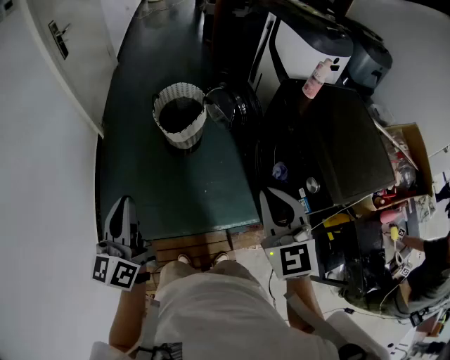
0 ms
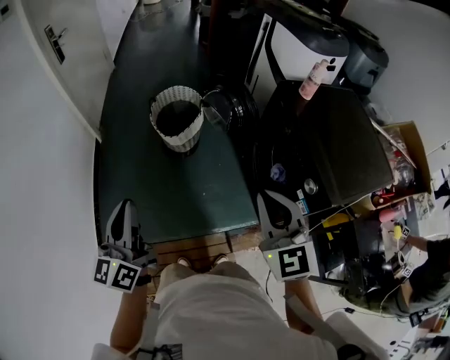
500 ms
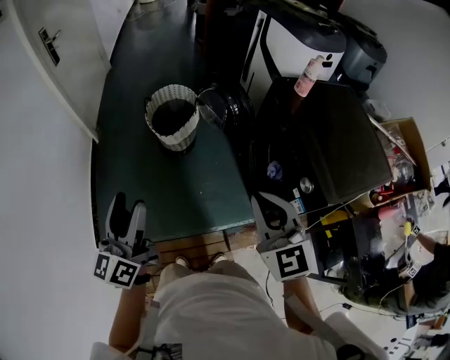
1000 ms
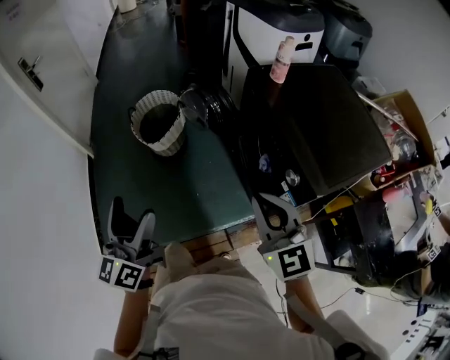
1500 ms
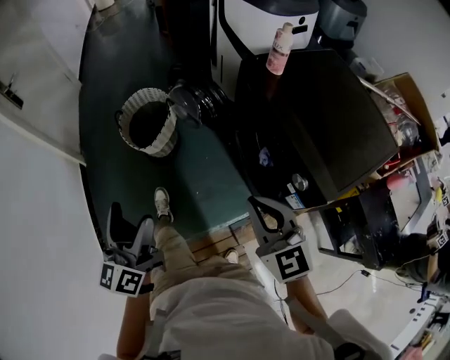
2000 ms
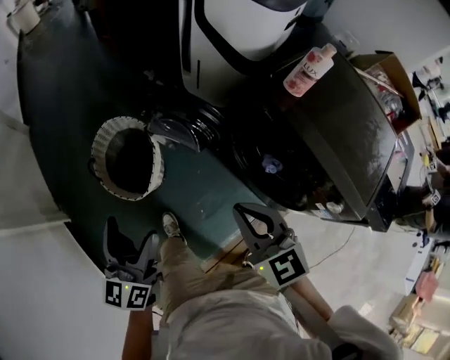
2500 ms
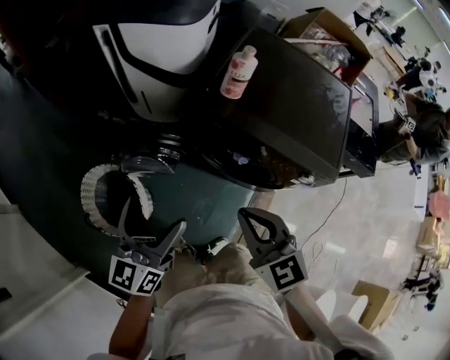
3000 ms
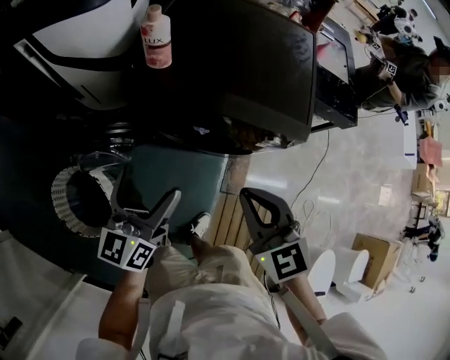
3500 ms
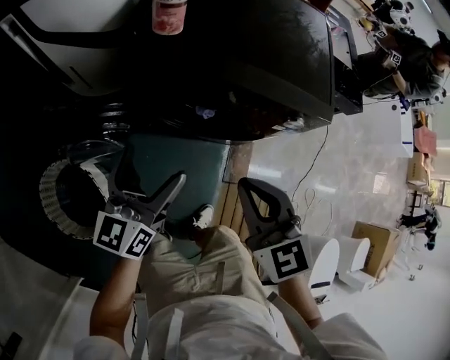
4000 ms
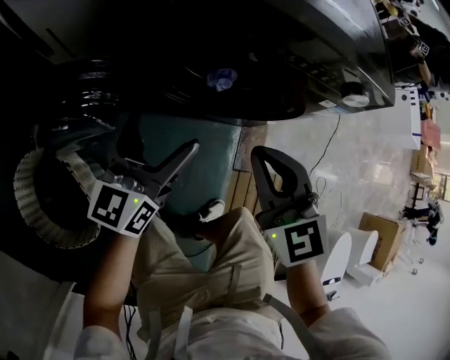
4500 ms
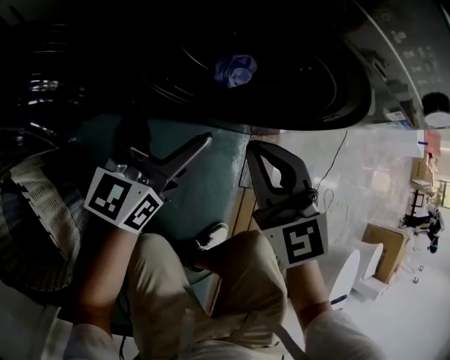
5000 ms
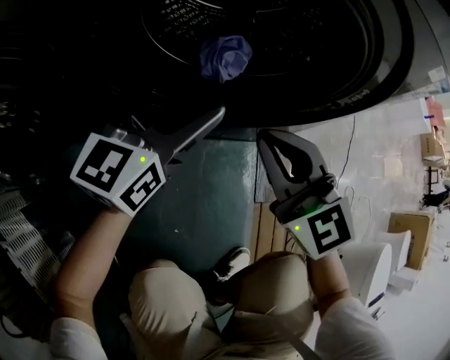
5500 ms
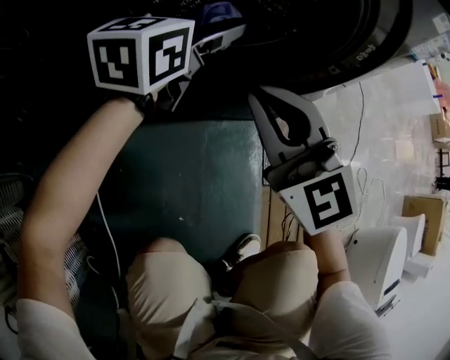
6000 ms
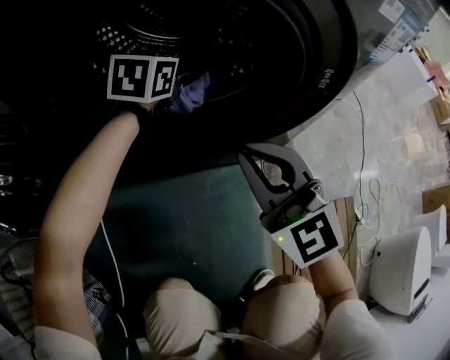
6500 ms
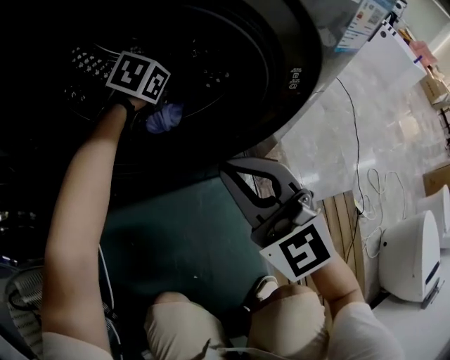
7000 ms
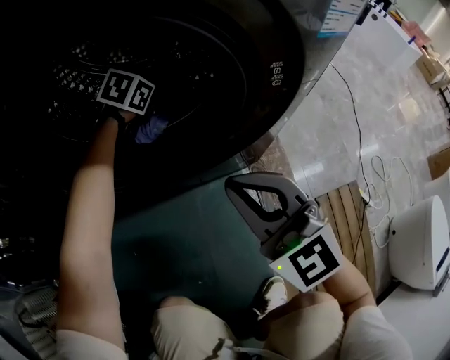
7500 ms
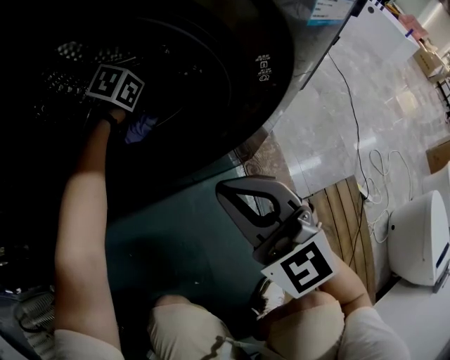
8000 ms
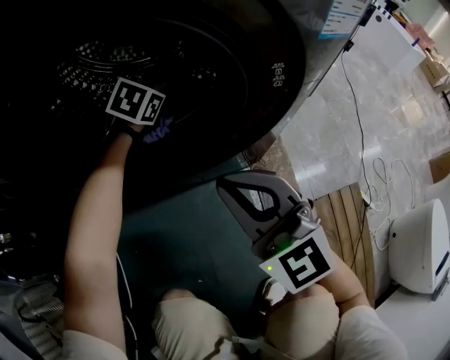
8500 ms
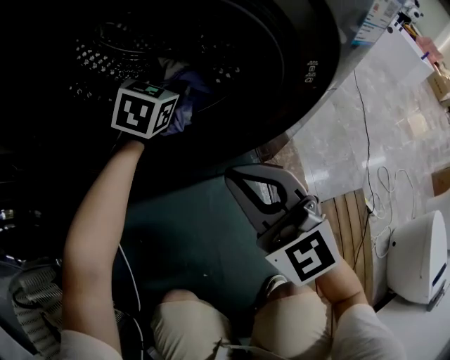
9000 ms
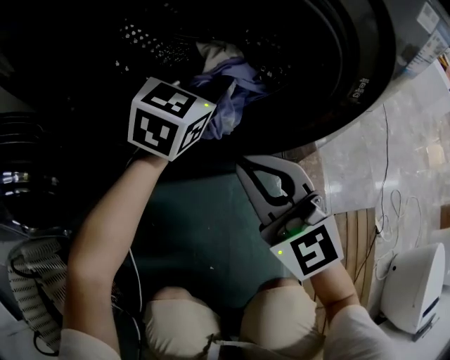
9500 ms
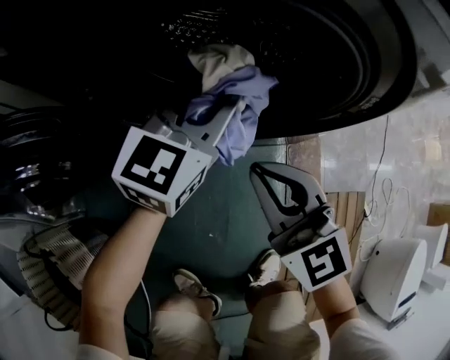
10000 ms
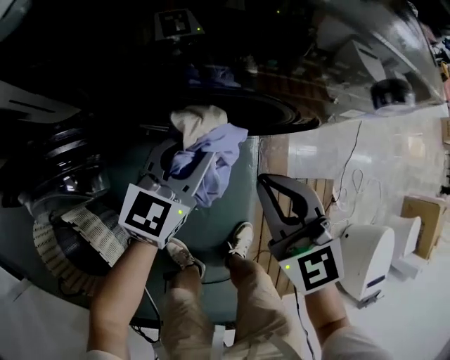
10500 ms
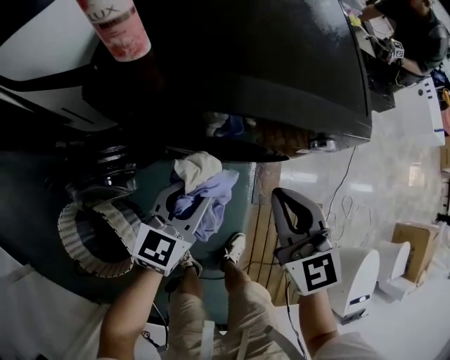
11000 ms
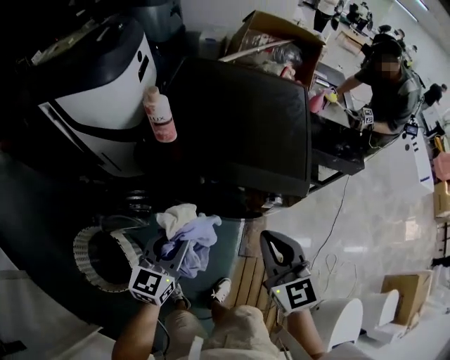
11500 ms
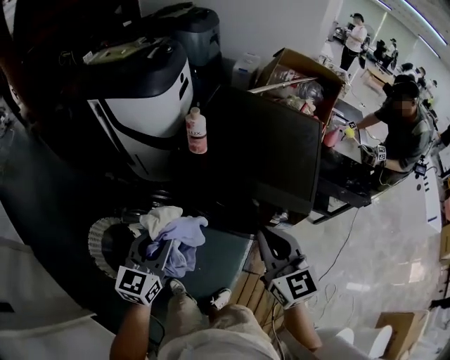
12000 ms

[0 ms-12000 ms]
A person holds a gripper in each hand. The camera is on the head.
0 ms to 2000 ms: The left gripper shifts roughly 20 cm to the right and forward, and opens its fingers, while the right gripper shifts about 15 cm to the right, downward and forward.
2000 ms to 4000 ms: The right gripper moves up and down over approximately 10 cm, changing direction 2 times, and swivels some 60 degrees; the left gripper swings up and down, roughly 15 cm each way, with 2 reversals, and swivels approximately 70 degrees.
4000 ms to 6000 ms: The left gripper travels downward and forward by about 50 cm, and rotates about 30 degrees. The right gripper moves downward, some 50 cm, and changes its angle by some 20 degrees.
6000 ms to 8000 ms: The right gripper shifts approximately 10 cm to the right, while the left gripper goes some 25 cm downward and forward, and angles its fingers downward, by roughly 50 degrees.
8000 ms to 10000 ms: The right gripper moves to the left and upward, roughly 10 cm; the left gripper goes approximately 30 cm upward and backward, tips its fingers upward by about 50 degrees, and closes.
10000 ms to 12000 ms: The left gripper heads upward and backward, covering roughly 60 cm, and changes its angle by about 40 degrees; the right gripper shifts about 60 cm upward.

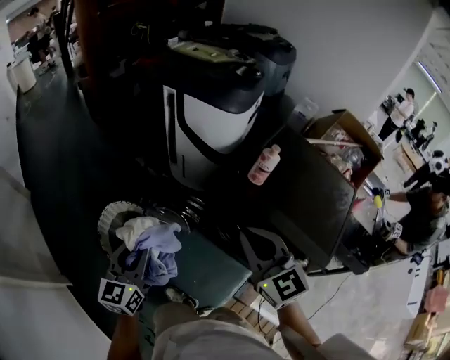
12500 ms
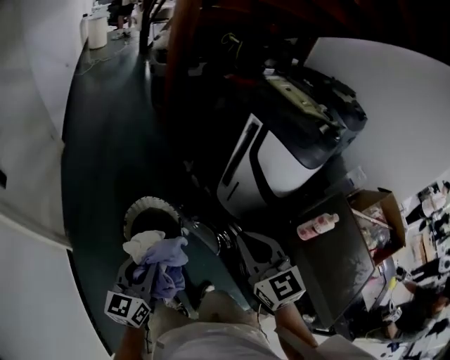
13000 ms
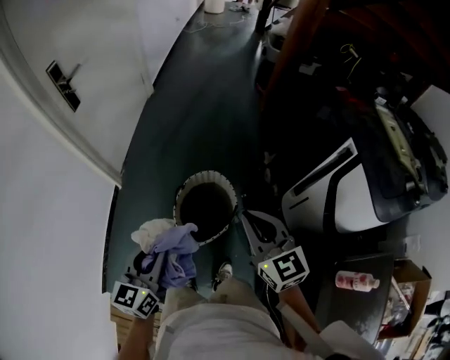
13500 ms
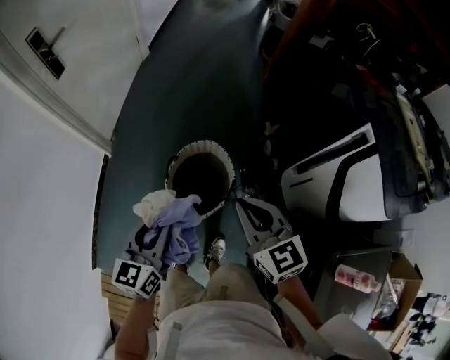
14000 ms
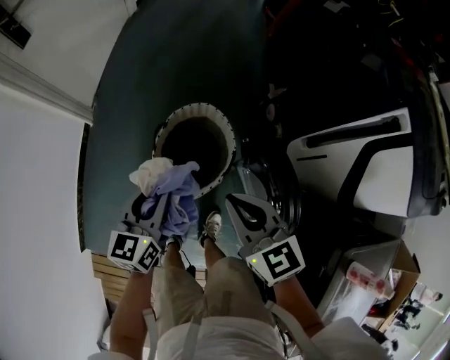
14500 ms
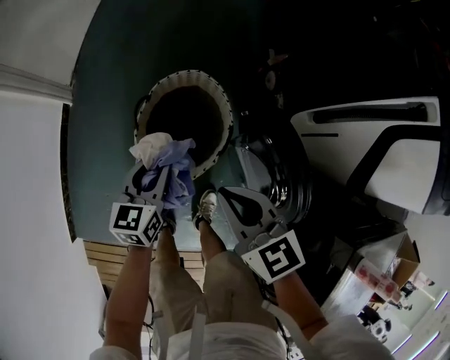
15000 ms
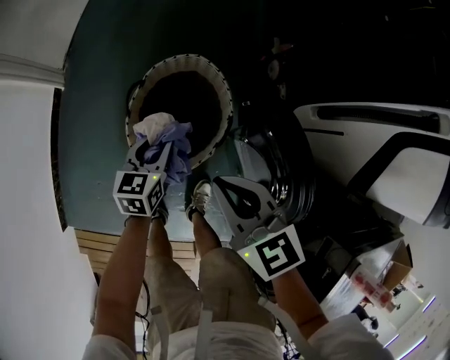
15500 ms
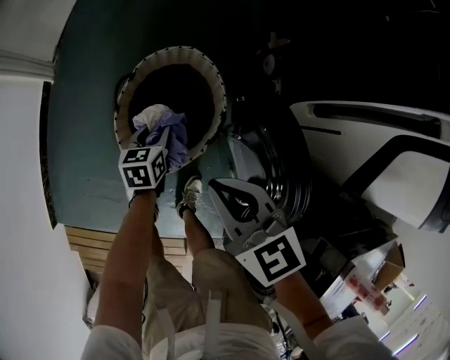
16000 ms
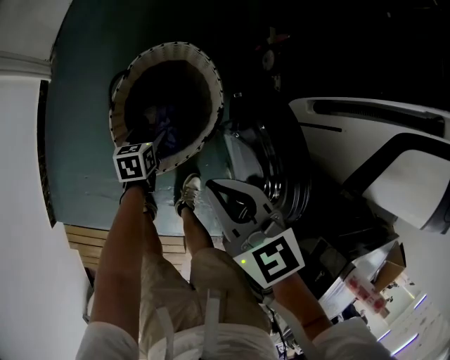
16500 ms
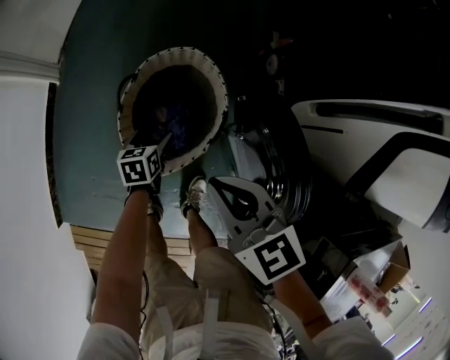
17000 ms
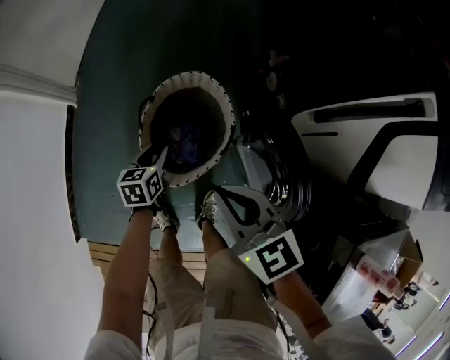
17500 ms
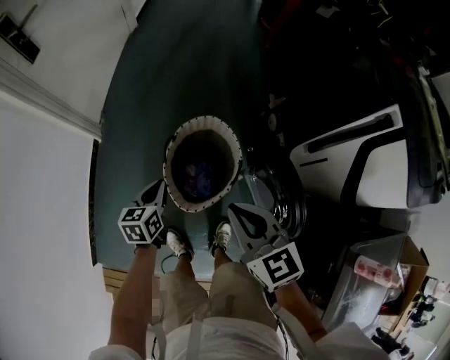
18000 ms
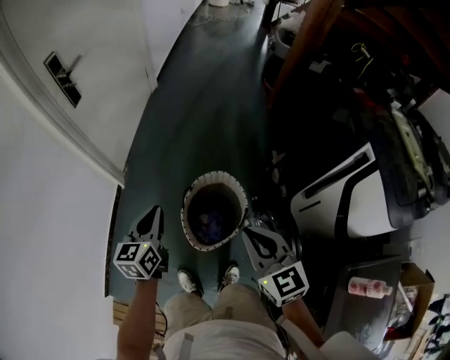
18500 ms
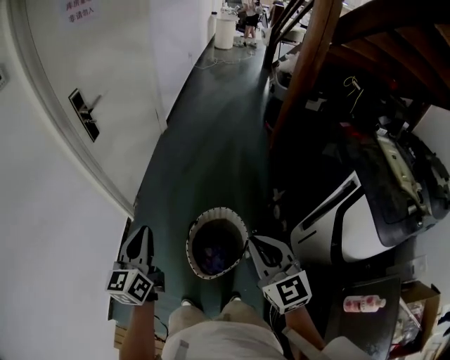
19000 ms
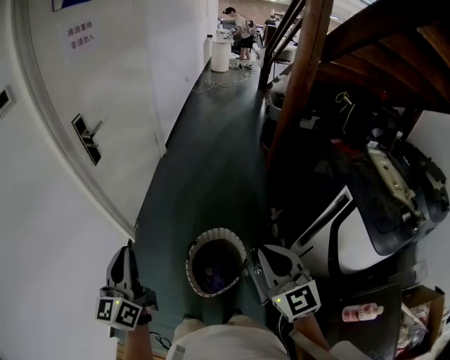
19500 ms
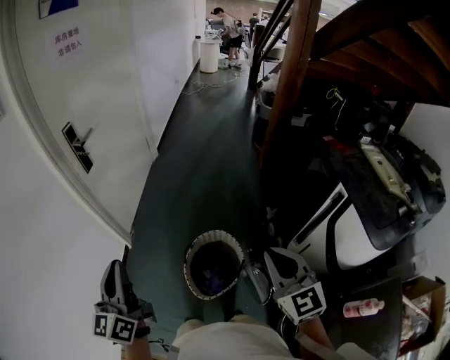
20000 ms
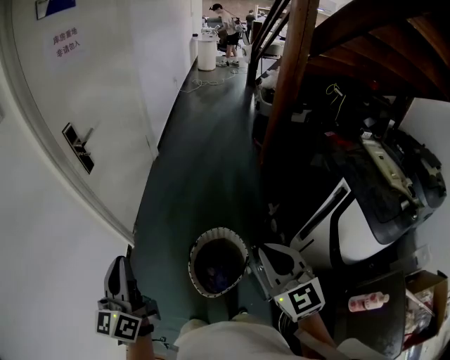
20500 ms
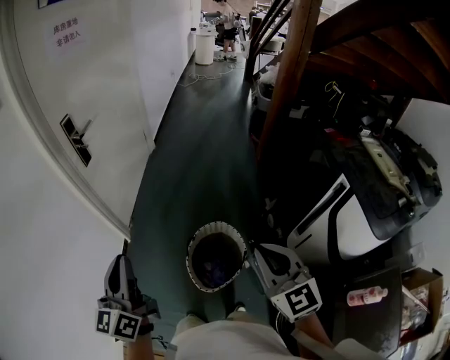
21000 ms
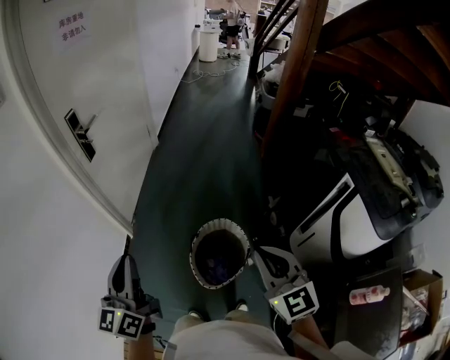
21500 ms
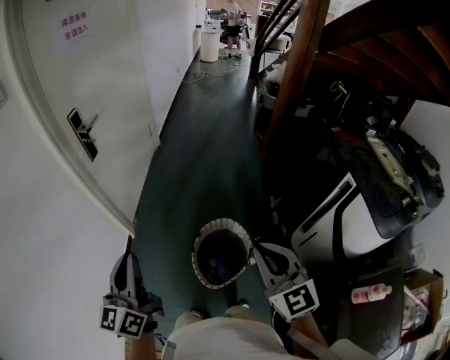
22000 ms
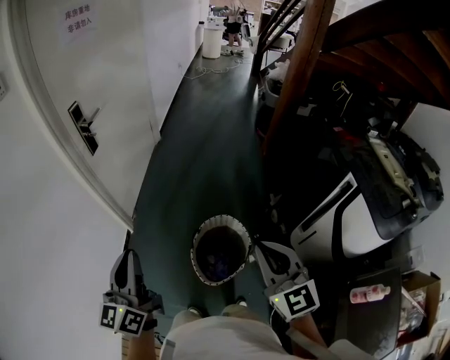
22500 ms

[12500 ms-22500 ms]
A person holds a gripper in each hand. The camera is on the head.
12500 ms to 14500 ms: The right gripper changes place by approximately 50 cm, and swivels some 60 degrees; the left gripper changes place by about 35 cm, and rotates some 50 degrees.
14500 ms to 16500 ms: The right gripper is displaced downward by roughly 15 cm. The left gripper is displaced downward by approximately 40 cm, angles its fingers downward, by about 40 degrees, and opens up.
16500 ms to 18500 ms: The left gripper goes approximately 50 cm upward, tilts its fingers some 40 degrees upward, and closes. Meanwhile the right gripper goes roughly 30 cm upward, and turns by about 20 degrees.
18500 ms to 20500 ms: The right gripper is displaced upward by approximately 15 cm. Meanwhile the left gripper shifts about 25 cm upward, and swivels some 30 degrees.
20500 ms to 22500 ms: The right gripper is displaced to the left by approximately 5 cm.

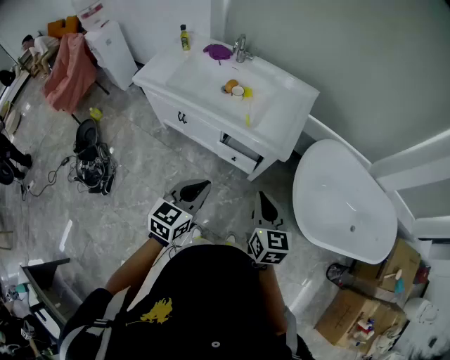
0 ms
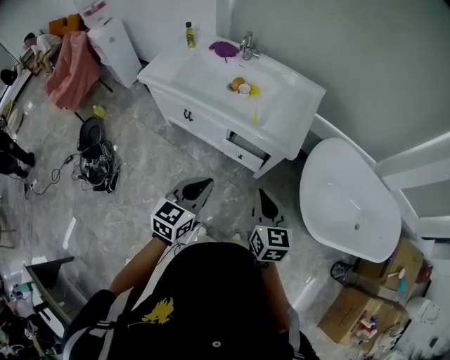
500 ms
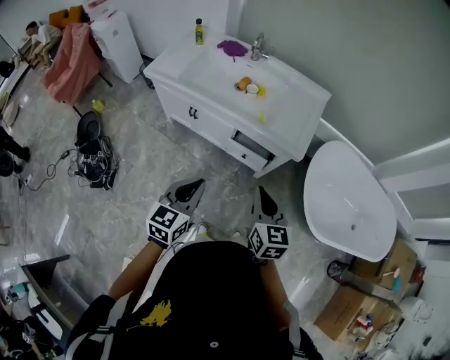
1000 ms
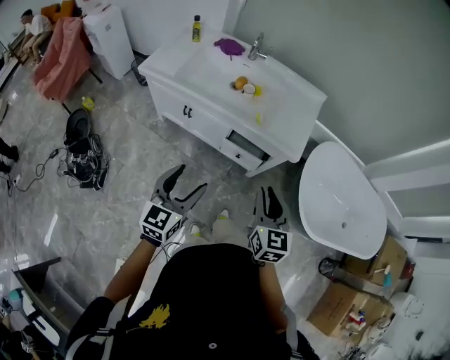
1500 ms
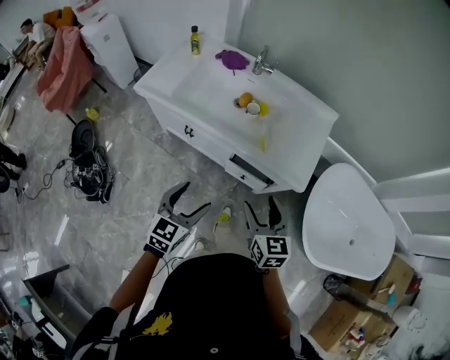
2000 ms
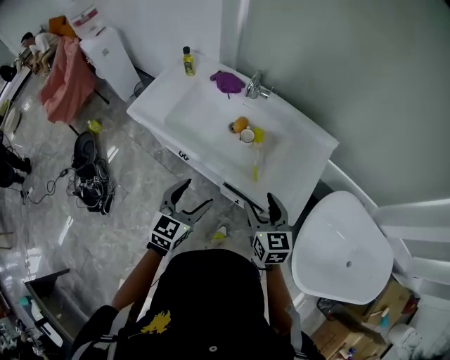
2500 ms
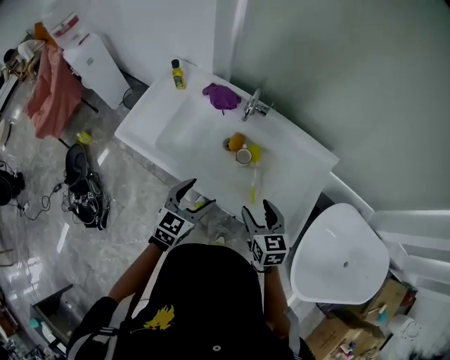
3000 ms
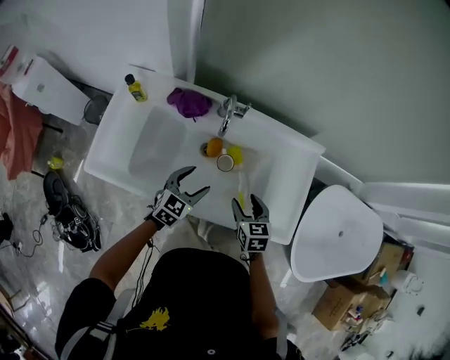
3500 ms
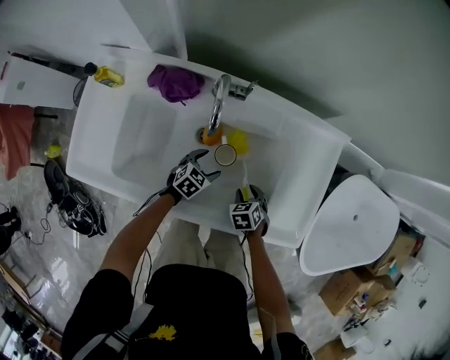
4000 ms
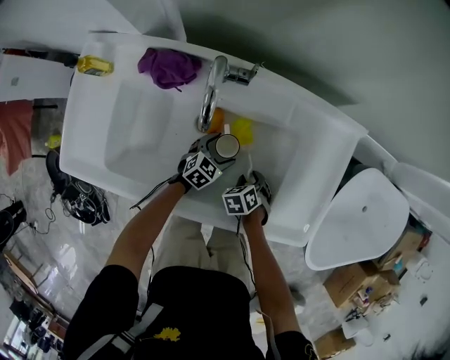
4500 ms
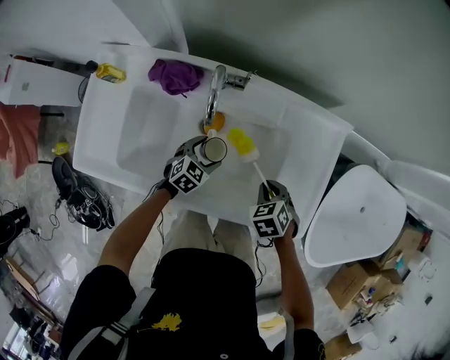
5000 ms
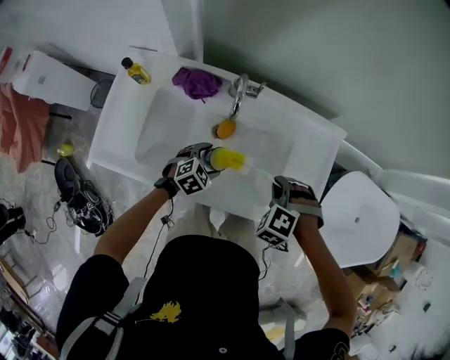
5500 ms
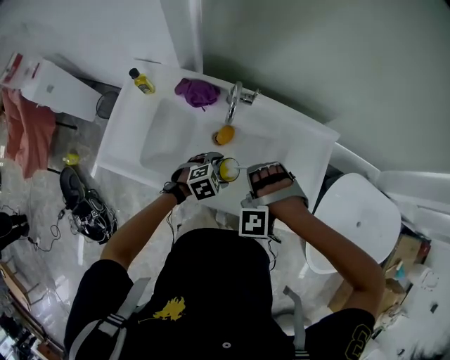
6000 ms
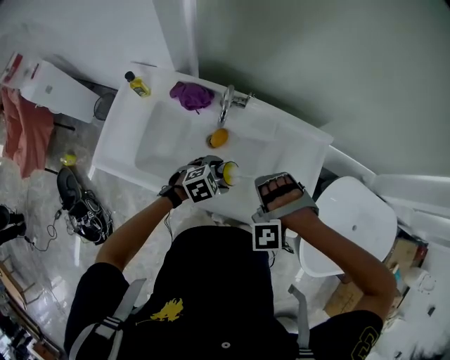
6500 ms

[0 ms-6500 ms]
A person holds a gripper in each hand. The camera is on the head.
0 ms to 2000 ms: The left gripper is displaced to the left, forward and downward by some 20 cm, and opens up; the right gripper moves forward, to the left and downward, about 20 cm, and opens its fingers.
2000 ms to 4500 ms: The left gripper ends up about 60 cm from where it was, and changes its angle by approximately 40 degrees. The right gripper moves roughly 60 cm, angles its fingers downward, by some 50 degrees, and closes up.
4500 ms to 6500 ms: The two grippers go about 30 cm upward. The right gripper rotates around the line of its fingers by about 90 degrees, counterclockwise from behind, and closes its fingers.
